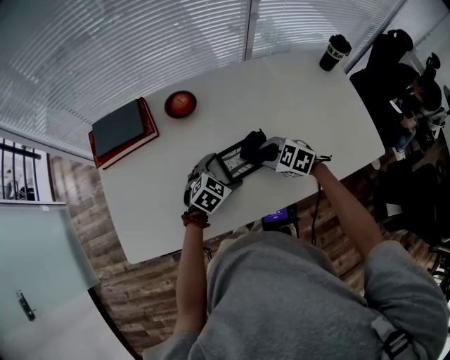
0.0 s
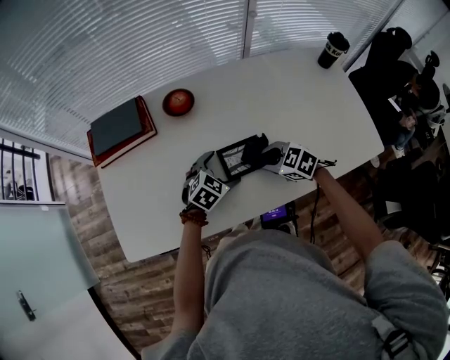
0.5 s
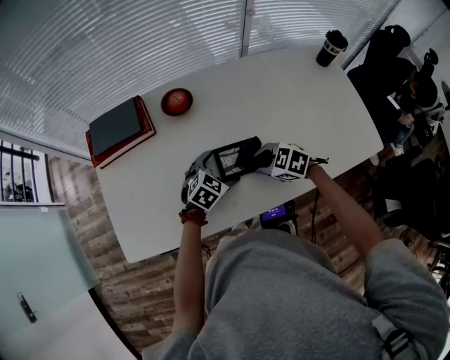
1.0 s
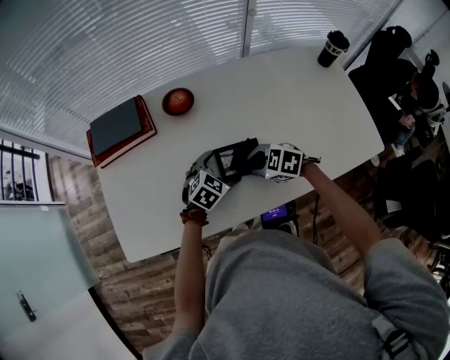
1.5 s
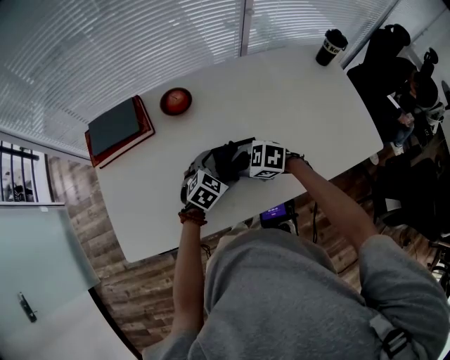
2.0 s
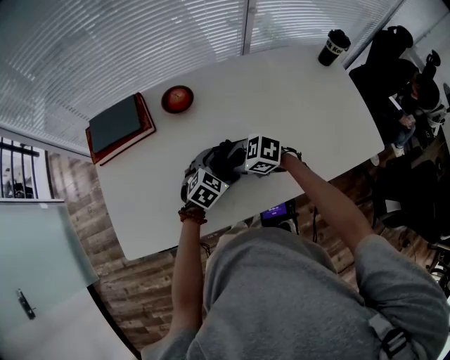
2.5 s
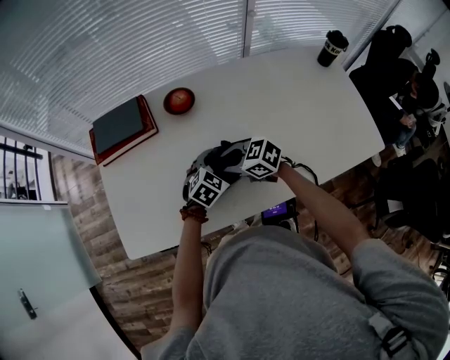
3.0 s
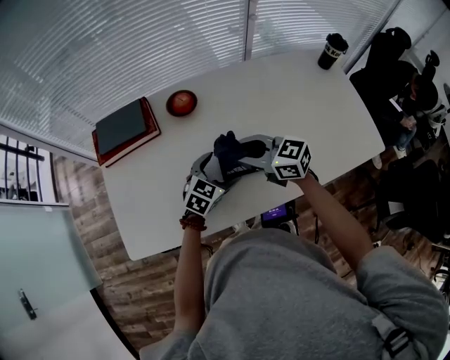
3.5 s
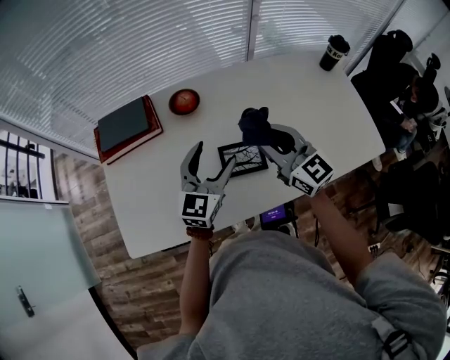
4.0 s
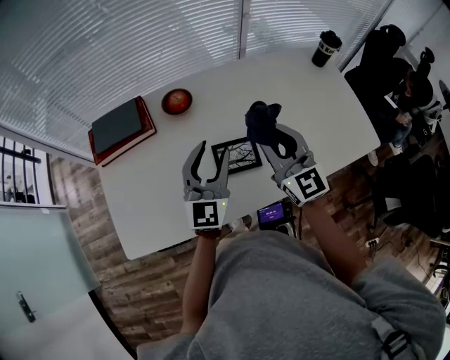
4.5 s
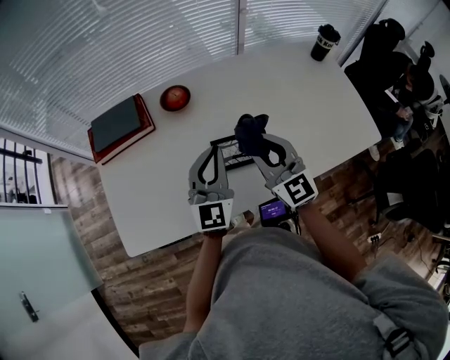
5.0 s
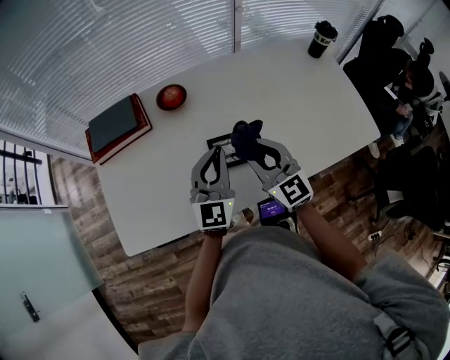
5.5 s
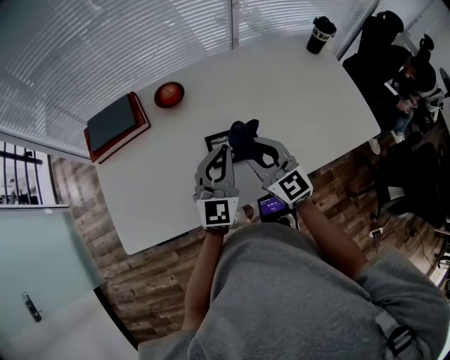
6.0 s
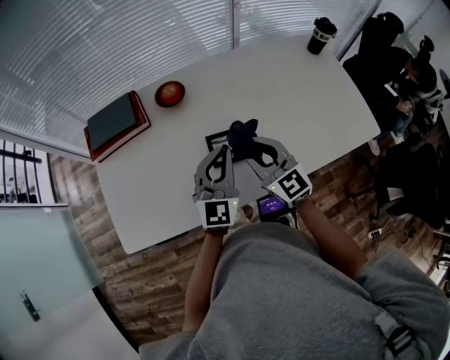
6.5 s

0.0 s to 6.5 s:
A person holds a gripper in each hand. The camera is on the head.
0.0 to 2.0 s: The right gripper changes place by some 10 cm.
2.0 to 4.5 s: The two grippers go approximately 20 cm upward. The left gripper points its fingers roughly 50 degrees further upward, and closes up. Meanwhile the right gripper angles its fingers upward, by some 50 degrees.
4.5 to 6.5 s: The left gripper ends up some 5 cm from where it was, and closes up. Meanwhile the right gripper travels downward by roughly 10 cm.

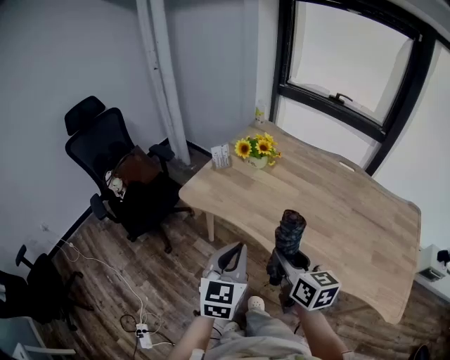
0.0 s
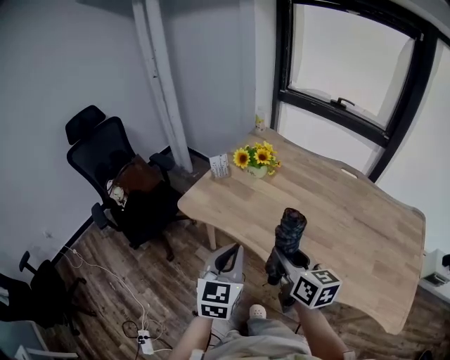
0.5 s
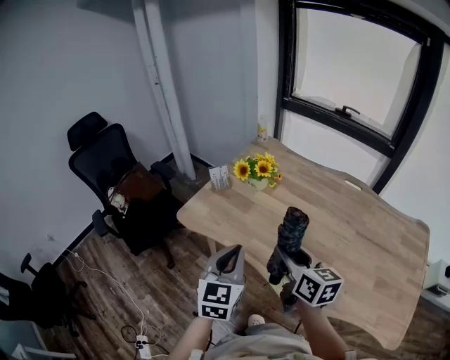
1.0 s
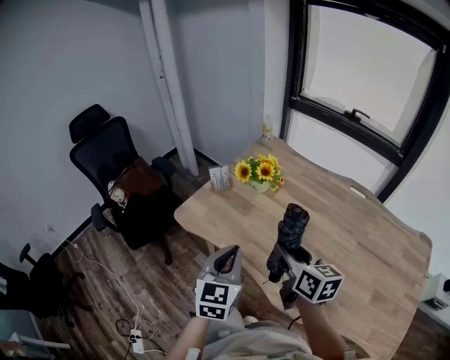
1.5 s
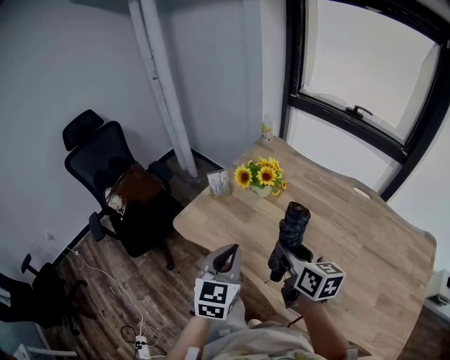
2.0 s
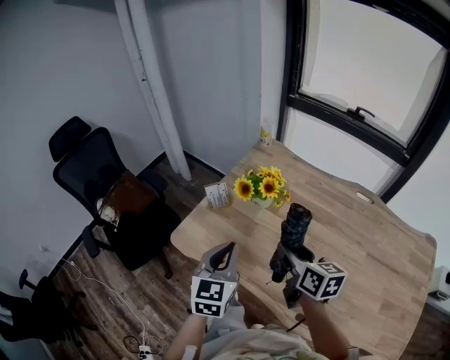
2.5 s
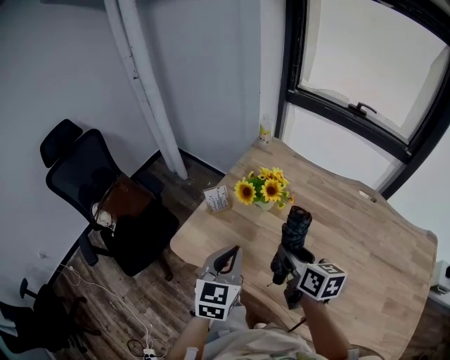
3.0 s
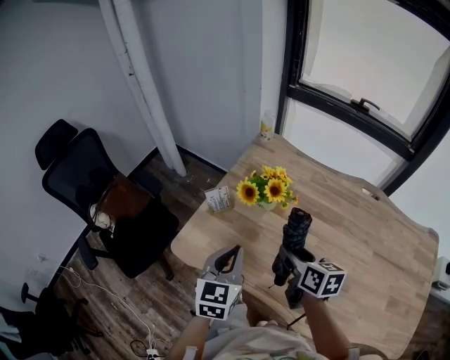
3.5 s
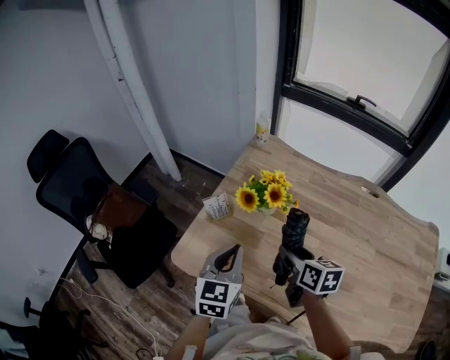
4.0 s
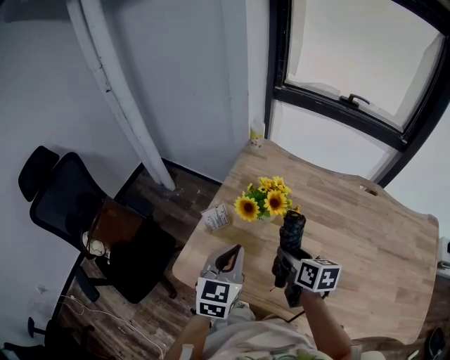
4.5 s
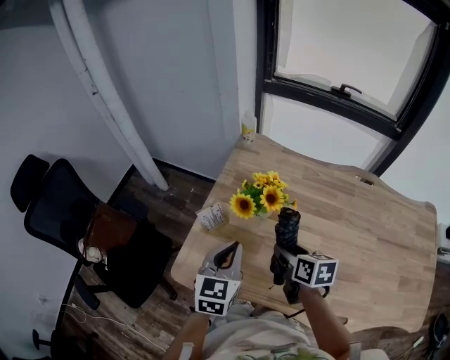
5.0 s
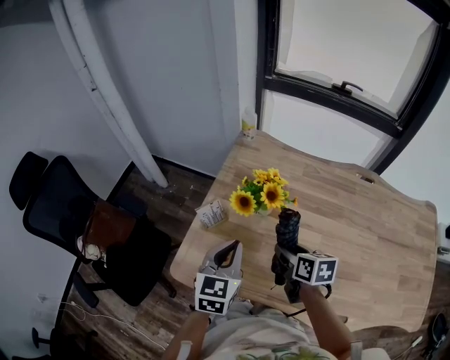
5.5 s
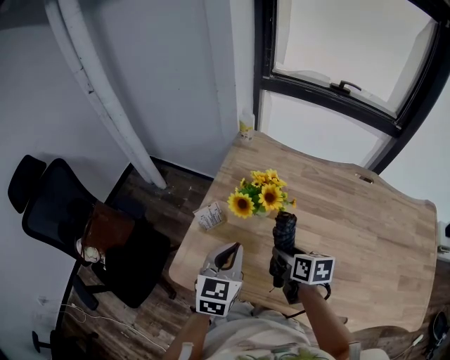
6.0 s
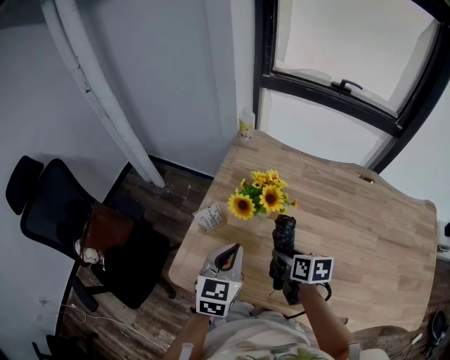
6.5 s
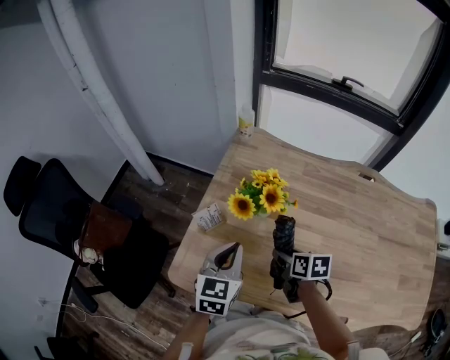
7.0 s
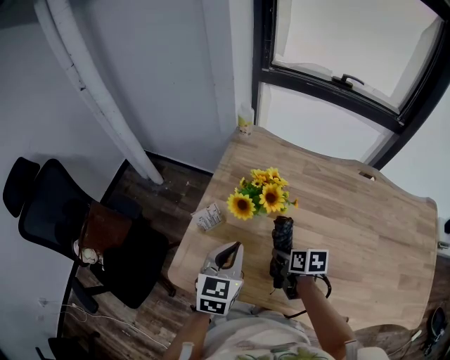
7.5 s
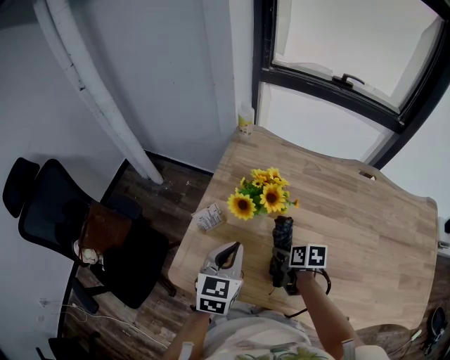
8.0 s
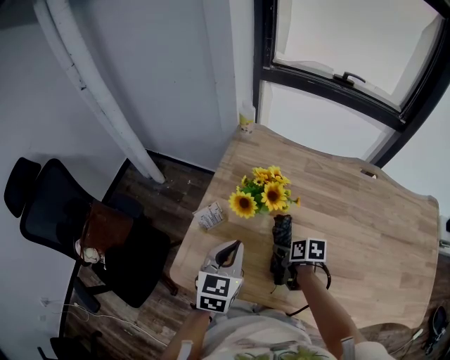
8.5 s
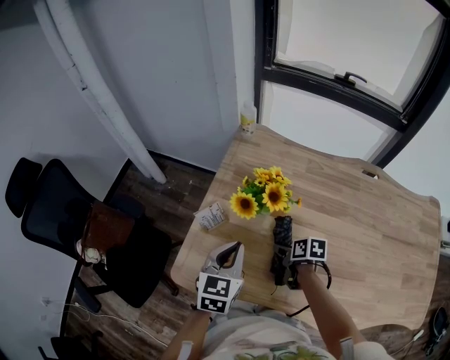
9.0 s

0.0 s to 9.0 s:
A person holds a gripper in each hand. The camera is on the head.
0.0 to 2.0 s: Both grippers move forward, approximately 20 cm.
2.0 to 4.5 s: The left gripper is displaced forward by about 20 cm. The right gripper heads forward and downward, covering about 20 cm, and changes its angle by roughly 20 degrees.
4.5 to 7.0 s: The right gripper is displaced downward by some 10 cm; the left gripper moves some 5 cm.
7.0 to 9.0 s: The right gripper heads downward, covering approximately 10 cm.

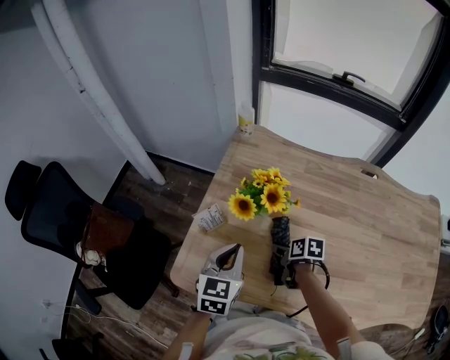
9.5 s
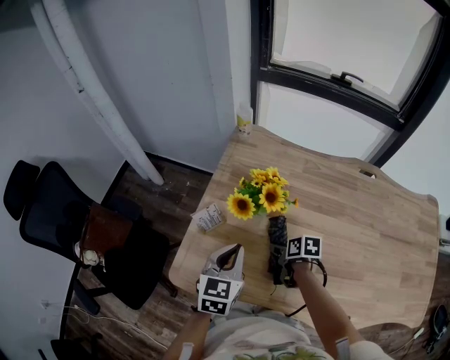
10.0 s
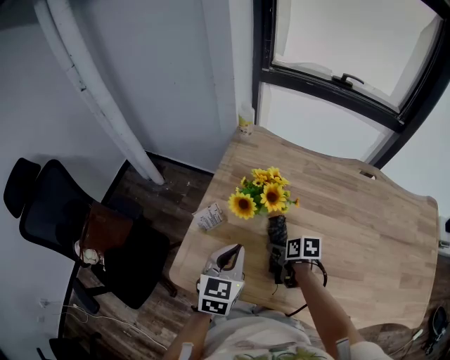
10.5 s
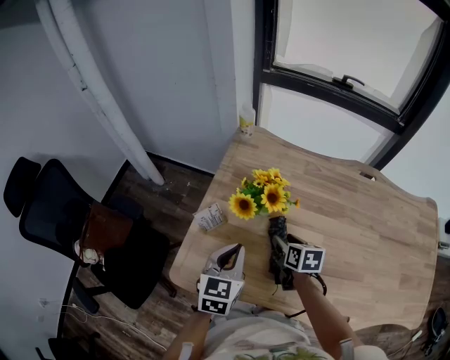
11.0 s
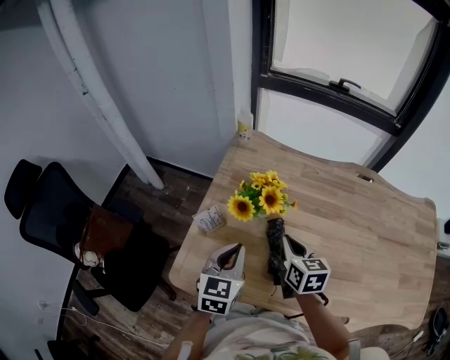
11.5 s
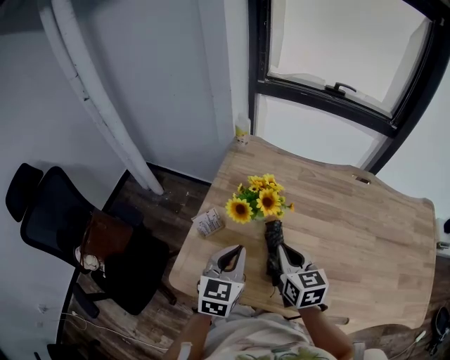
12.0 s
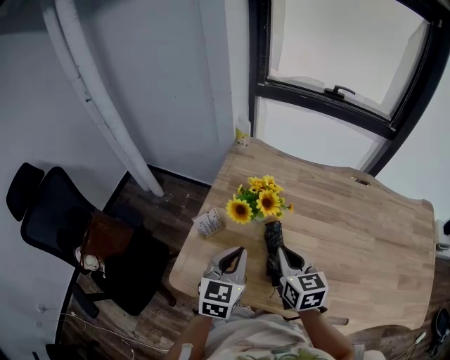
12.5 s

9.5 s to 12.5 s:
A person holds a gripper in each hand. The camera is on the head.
9.5 to 11.0 s: The right gripper goes approximately 5 cm upward, and changes its angle by some 20 degrees.
11.0 to 12.5 s: The right gripper goes roughly 15 cm upward and backward, turns by some 30 degrees, and closes.

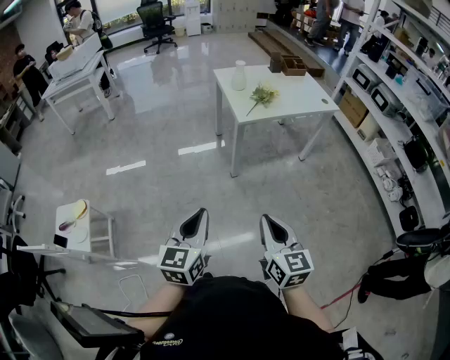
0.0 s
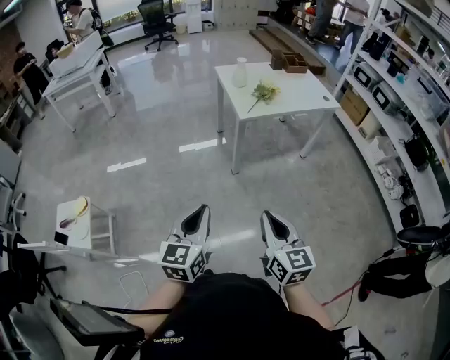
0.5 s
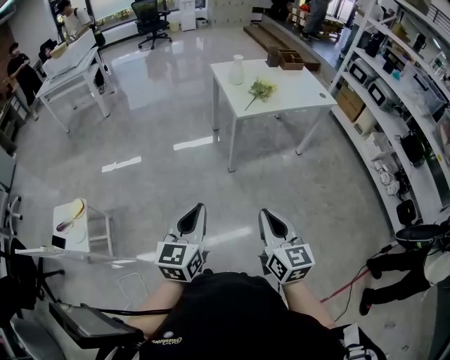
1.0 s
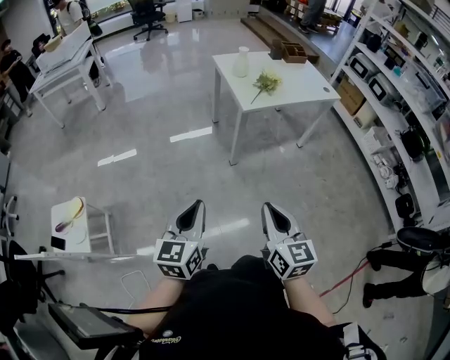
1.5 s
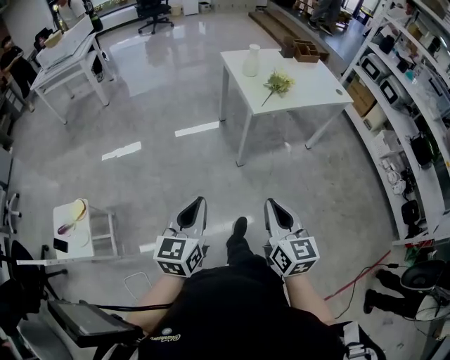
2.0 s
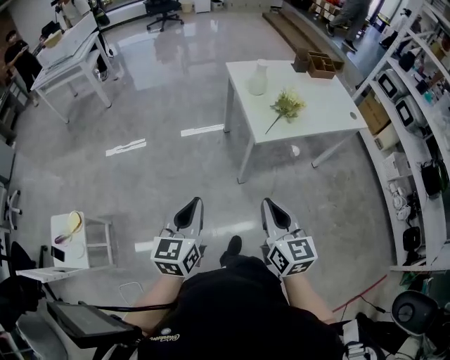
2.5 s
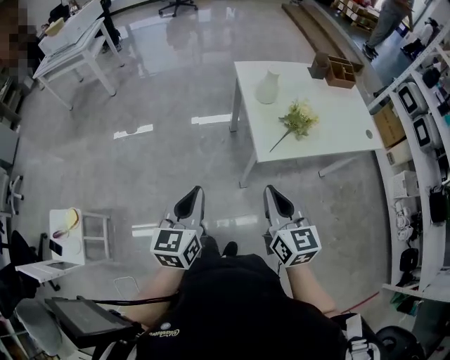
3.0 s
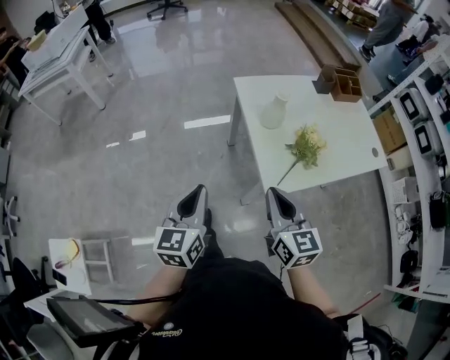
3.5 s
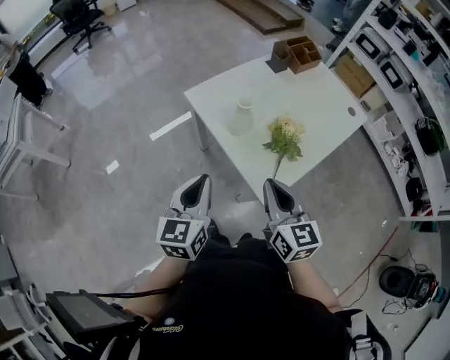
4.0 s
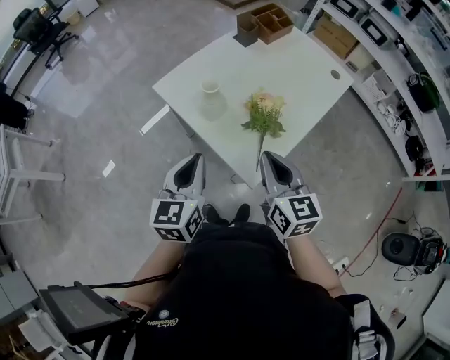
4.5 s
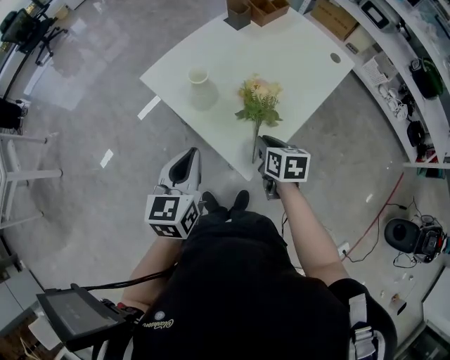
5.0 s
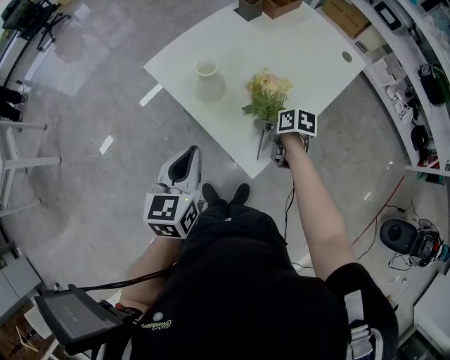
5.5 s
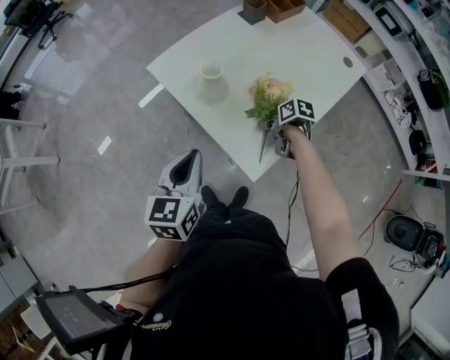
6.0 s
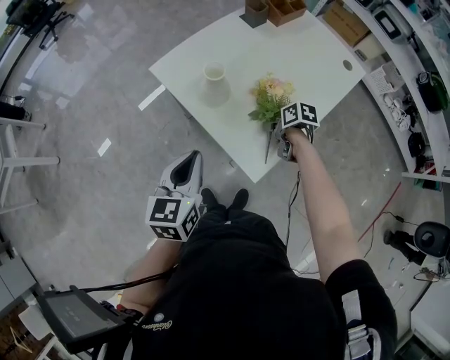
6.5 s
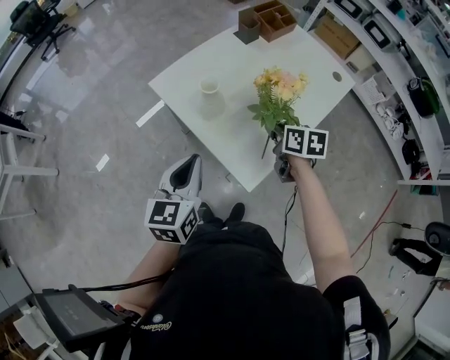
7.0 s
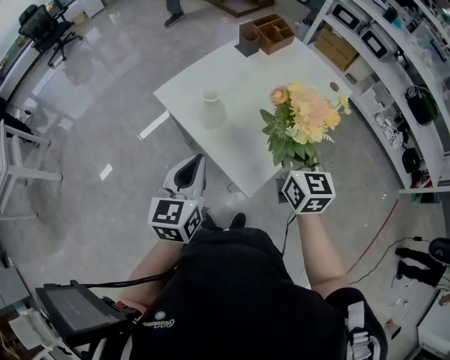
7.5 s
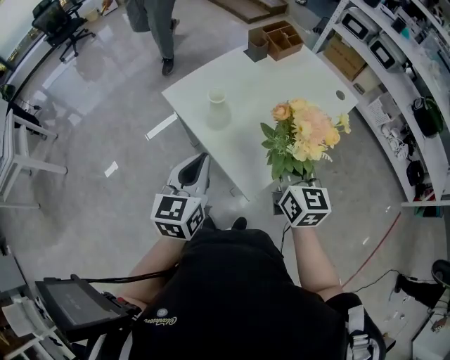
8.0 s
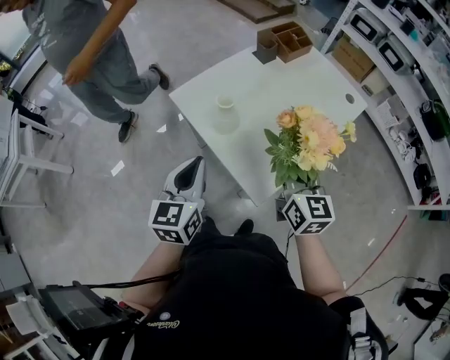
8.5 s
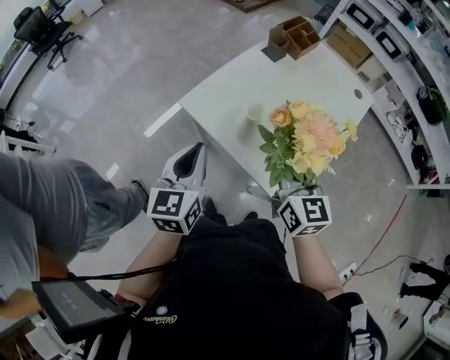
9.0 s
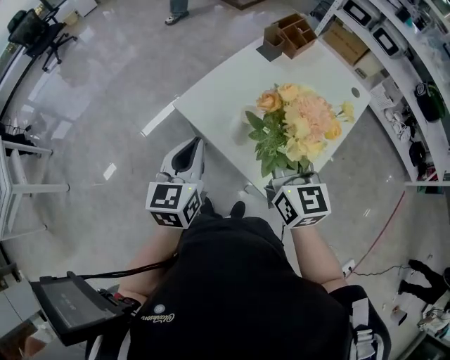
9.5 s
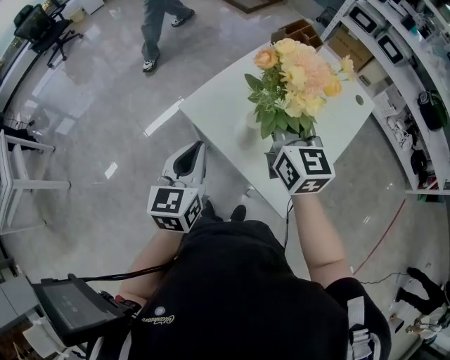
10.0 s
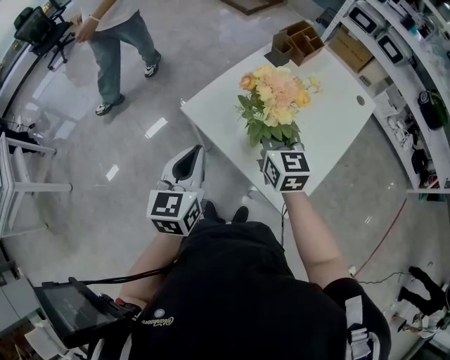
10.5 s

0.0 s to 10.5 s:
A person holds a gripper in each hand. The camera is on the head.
0.0 to 2.0 s: Both grippers move forward and to the left, roughly 15 cm.
2.0 to 4.0 s: The two grippers travel together, about 60 cm.
4.0 to 6.5 s: The right gripper travels downward by roughly 30 cm, angles its fingers downward, by some 40 degrees, and opens and closes again. Meanwhile the left gripper changes place by roughly 10 cm.
6.5 to 8.5 s: The left gripper travels upward by about 5 cm. The right gripper heads upward, covering approximately 25 cm, and tips its fingers upward by some 50 degrees.
8.5 to 10.5 s: Both grippers move to the left and forward, about 20 cm.
